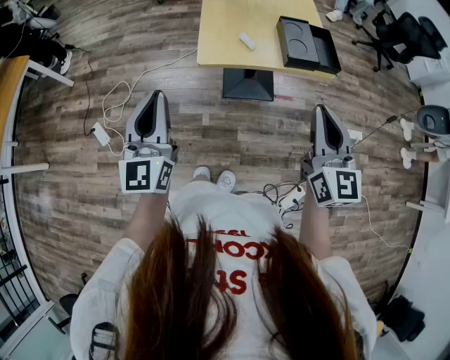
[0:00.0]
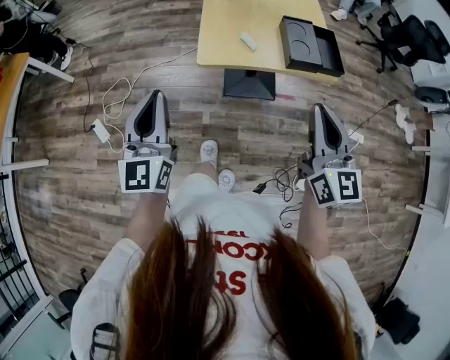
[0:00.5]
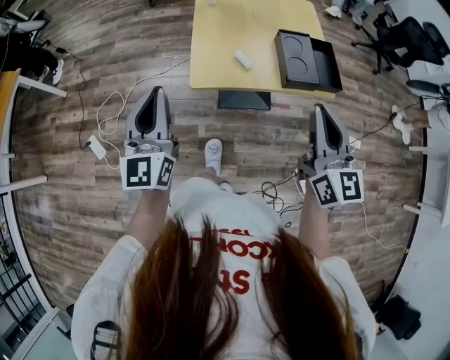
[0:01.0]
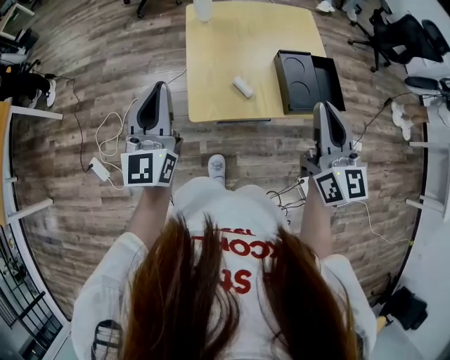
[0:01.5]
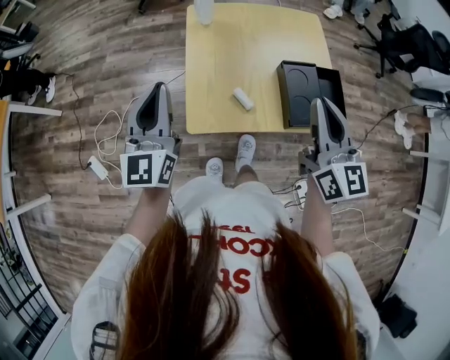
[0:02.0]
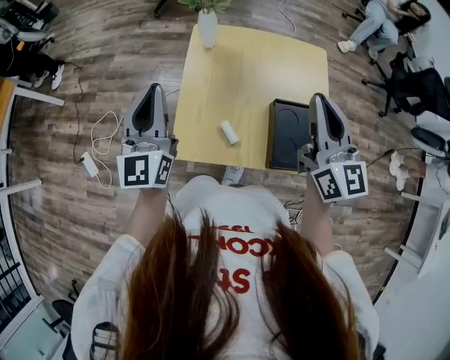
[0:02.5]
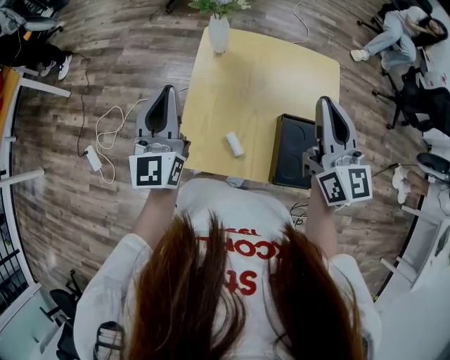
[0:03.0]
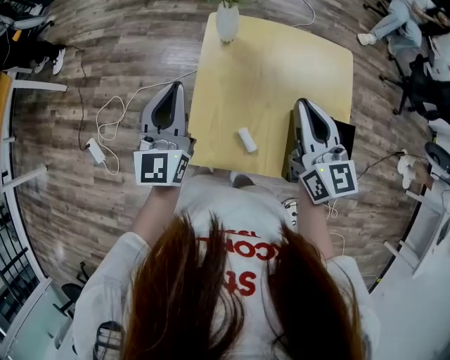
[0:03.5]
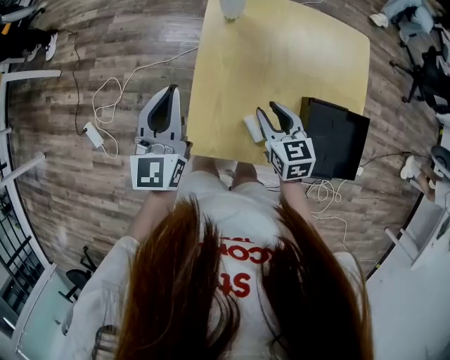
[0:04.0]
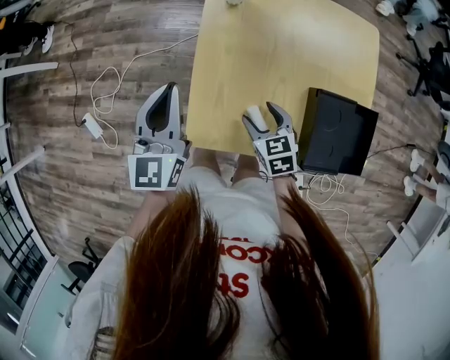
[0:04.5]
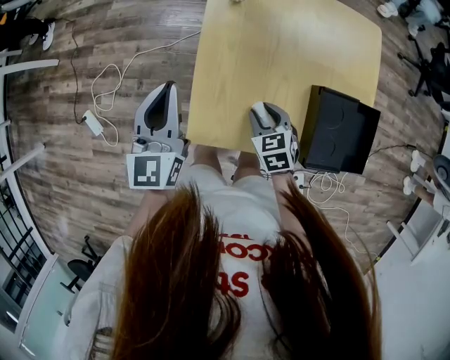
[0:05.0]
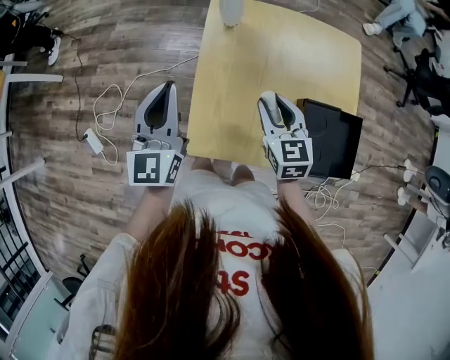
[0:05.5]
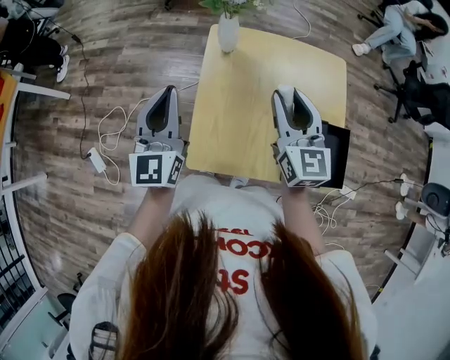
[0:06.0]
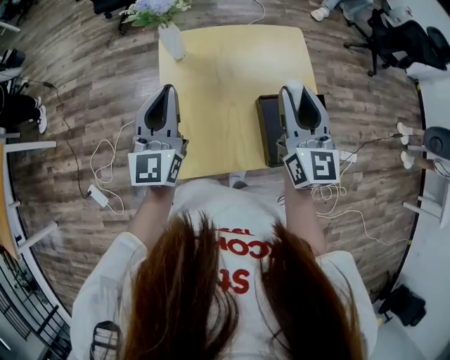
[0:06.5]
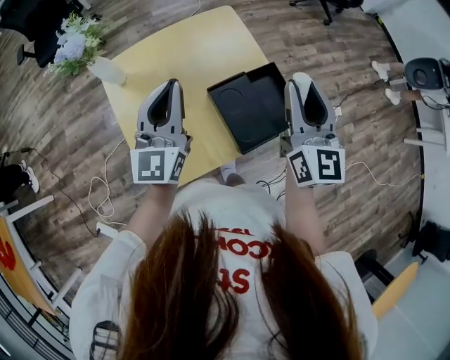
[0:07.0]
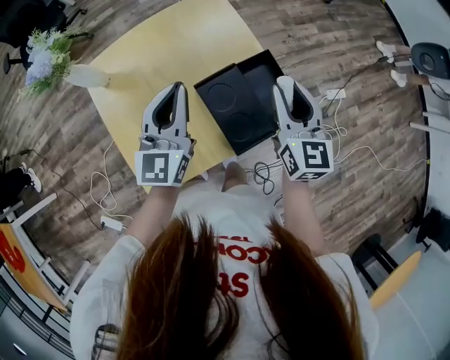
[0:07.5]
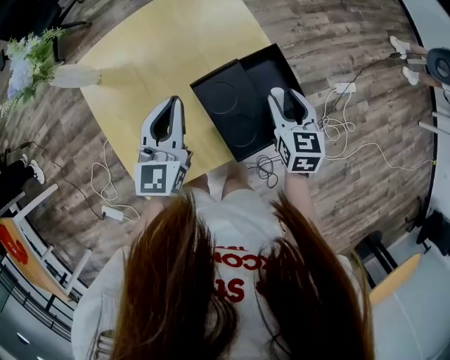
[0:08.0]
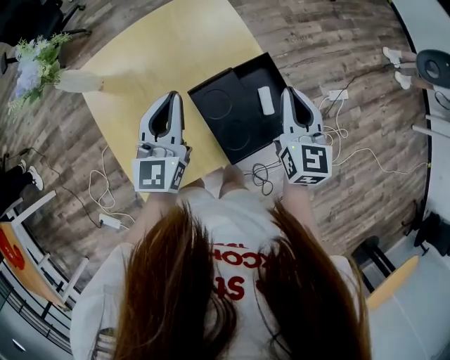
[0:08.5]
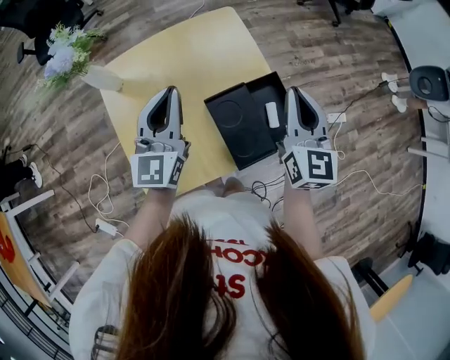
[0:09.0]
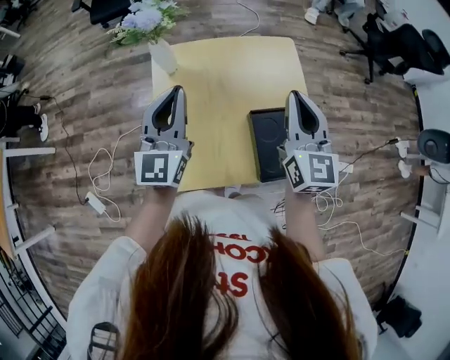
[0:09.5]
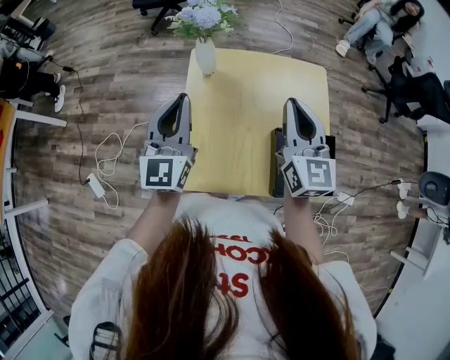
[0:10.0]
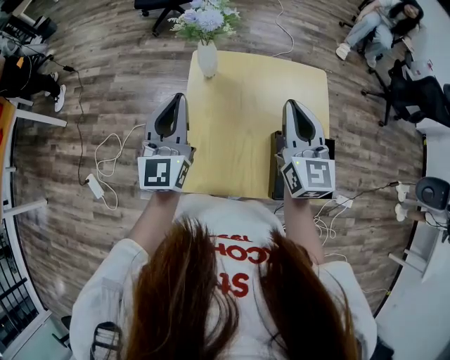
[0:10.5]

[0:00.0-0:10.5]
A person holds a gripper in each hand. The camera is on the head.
0:00.0 to 0:02.0: Both grippers move forward, some 30 cm.
0:02.0 to 0:04.0: The left gripper moves downward and forward, some 15 cm, while the right gripper goes approximately 30 cm downward and forward, points its fingers roughly 40 degrees further downward, and opens up.
0:04.0 to 0:06.5: The left gripper shifts by approximately 15 cm. Meanwhile the right gripper shifts some 25 cm upward, angles its fingers upward, by roughly 30 degrees, and opens, then closes once more.
0:06.5 to 0:08.5: Both grippers travel together to the right and downward, roughly 20 cm. The right gripper swivels roughly 30 degrees, and closes up, while the left gripper swivels some 30 degrees.
0:08.5 to 0:10.5: The left gripper moves roughly 25 cm, and rotates roughly 40 degrees; the right gripper ends up approximately 30 cm from where it was, and changes its angle by about 40 degrees.

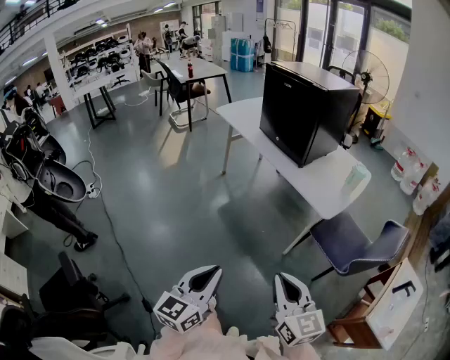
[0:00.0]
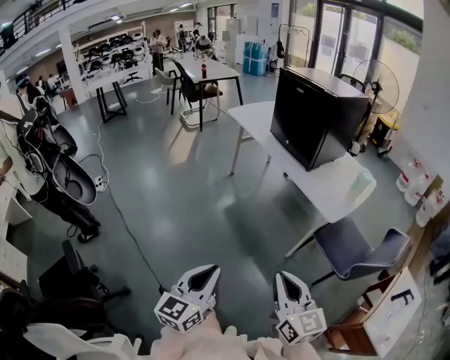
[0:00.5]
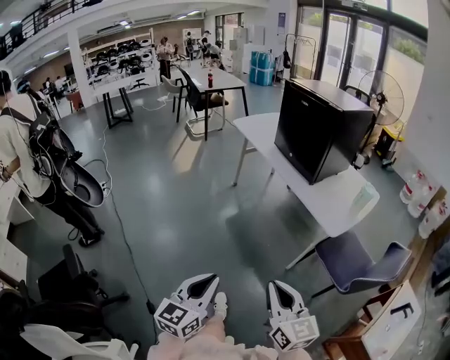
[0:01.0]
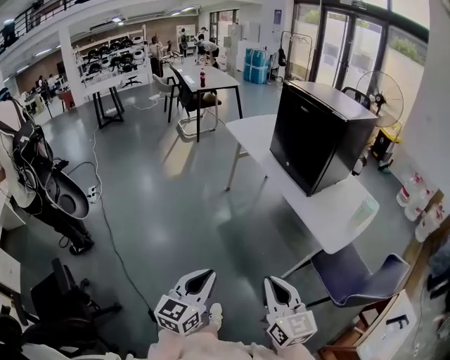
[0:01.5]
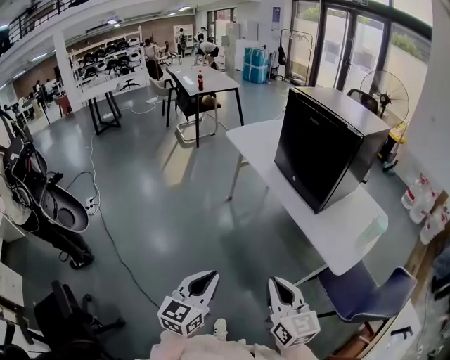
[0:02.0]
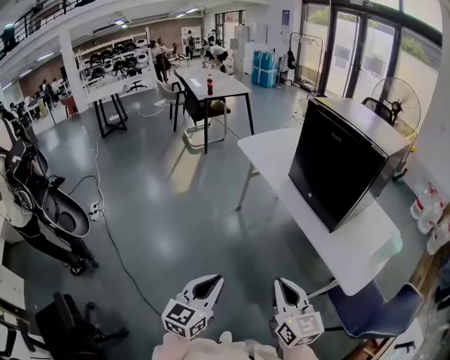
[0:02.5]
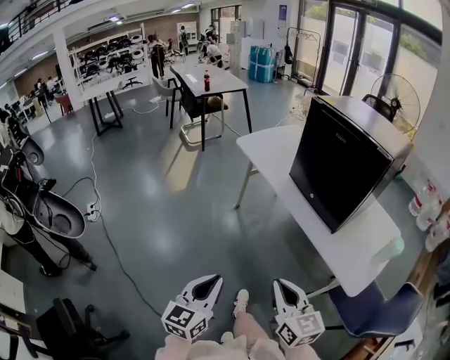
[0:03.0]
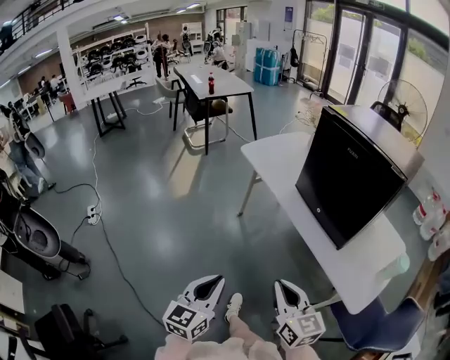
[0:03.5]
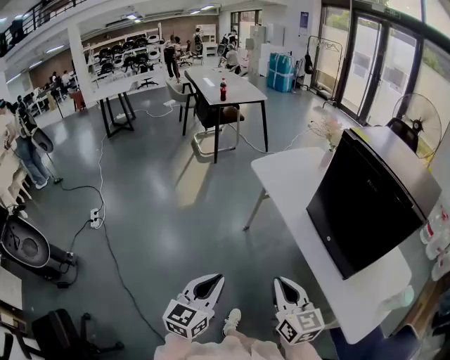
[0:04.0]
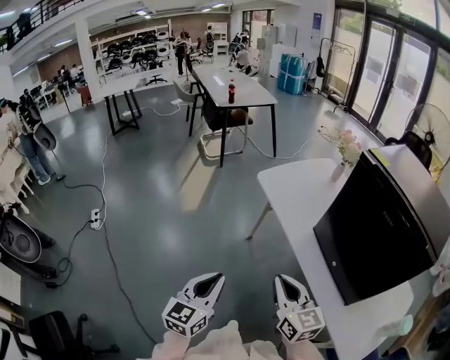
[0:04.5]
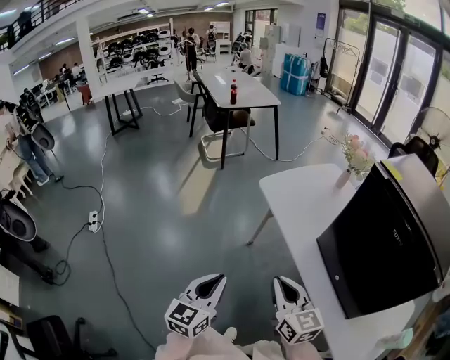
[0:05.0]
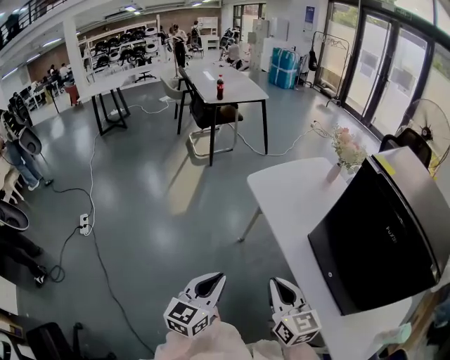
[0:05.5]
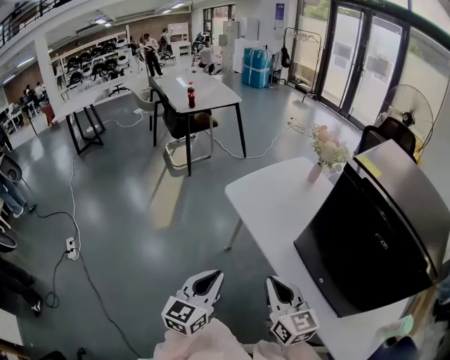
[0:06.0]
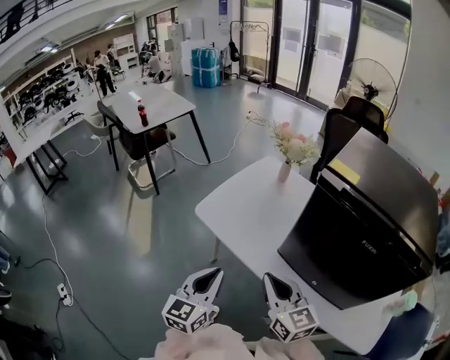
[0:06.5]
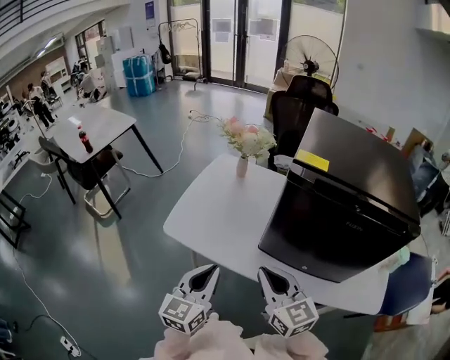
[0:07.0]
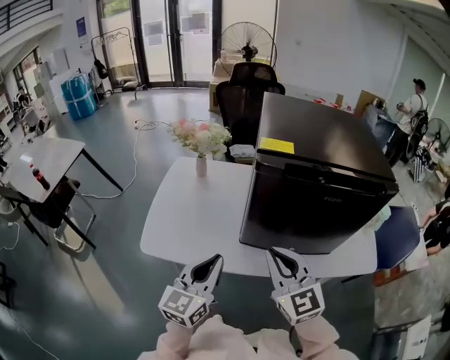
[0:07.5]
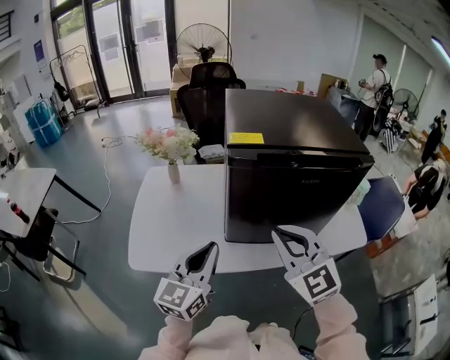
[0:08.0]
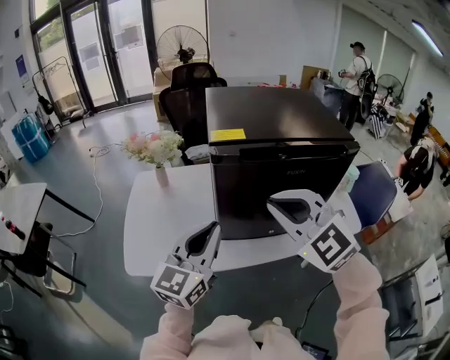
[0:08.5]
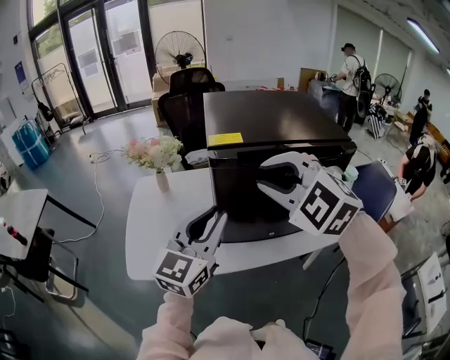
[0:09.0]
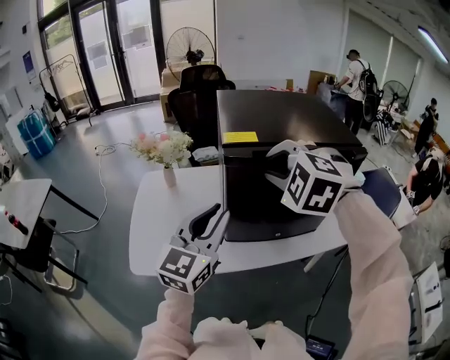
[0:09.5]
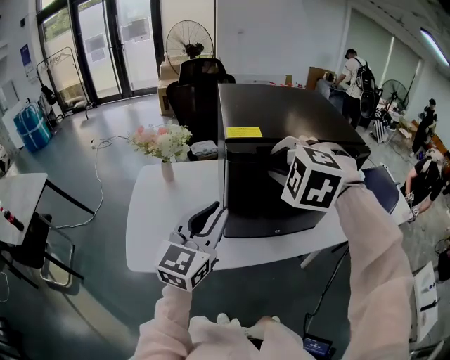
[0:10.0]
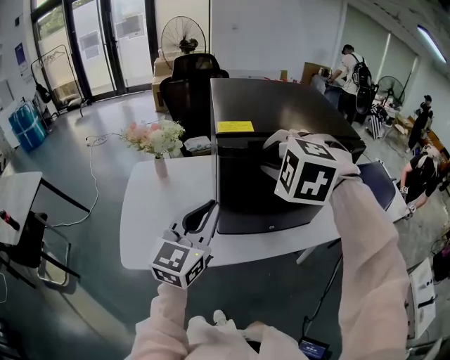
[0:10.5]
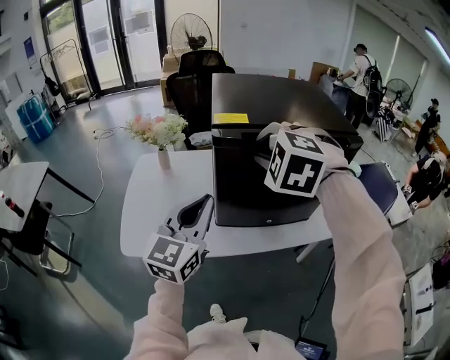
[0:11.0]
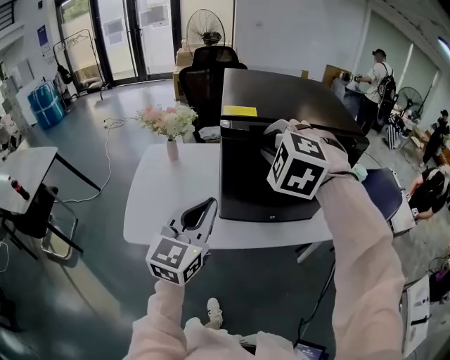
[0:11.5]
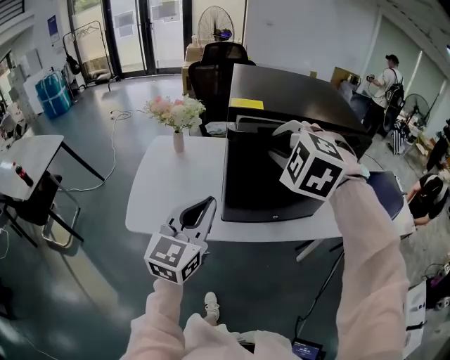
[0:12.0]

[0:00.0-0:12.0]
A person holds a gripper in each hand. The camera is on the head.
0:00.0 to 0:02.0: Both grippers move forward, about 25 cm.
0:02.0 to 0:04.0: Both grippers travel together forward, approximately 35 cm.
0:04.0 to 0:06.0: The two grippers go about 30 cm forward.
0:06.0 to 0:08.0: The right gripper moves some 20 cm, and swivels approximately 60 degrees; the left gripper changes place by about 25 cm, and rotates some 60 degrees.
0:08.0 to 0:10.0: The left gripper moves upward and forward, roughly 10 cm; the right gripper shifts approximately 15 cm forward and upward, and angles its fingers downward, by some 40 degrees.
0:10.0 to 0:12.0: The left gripper moves backward, about 10 cm.

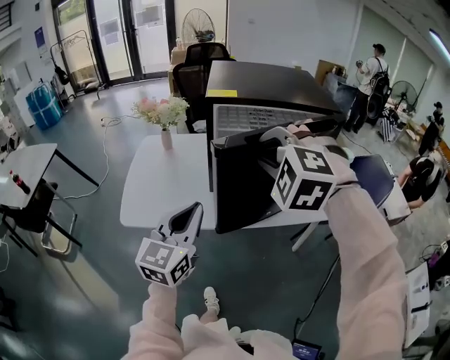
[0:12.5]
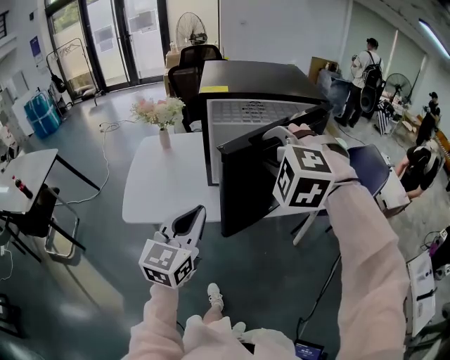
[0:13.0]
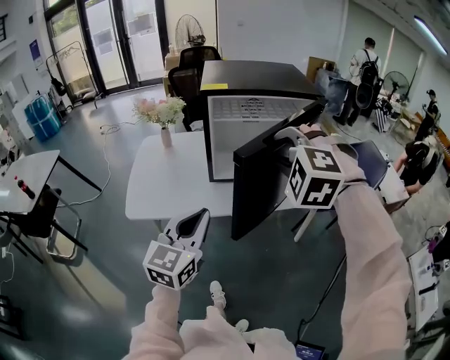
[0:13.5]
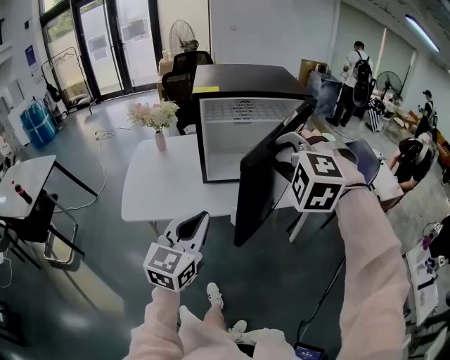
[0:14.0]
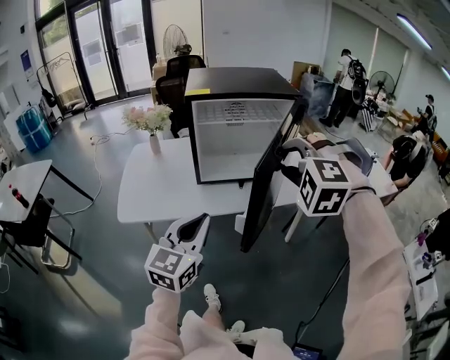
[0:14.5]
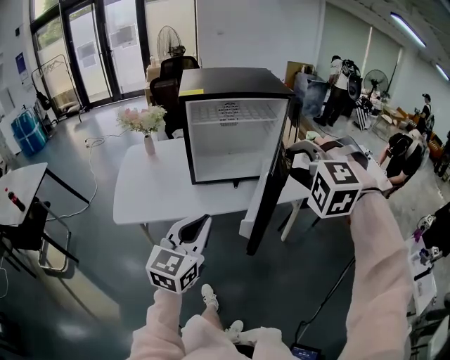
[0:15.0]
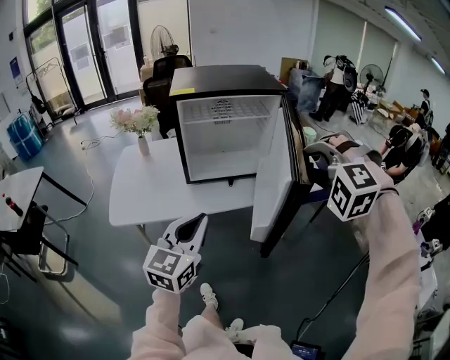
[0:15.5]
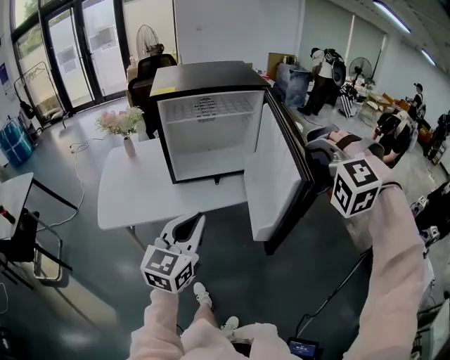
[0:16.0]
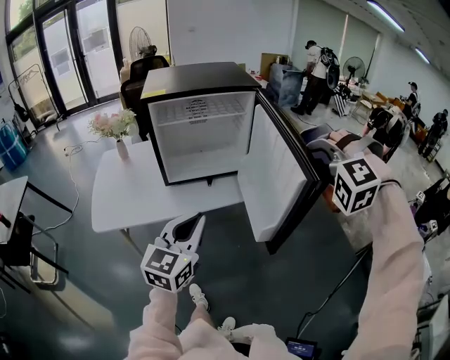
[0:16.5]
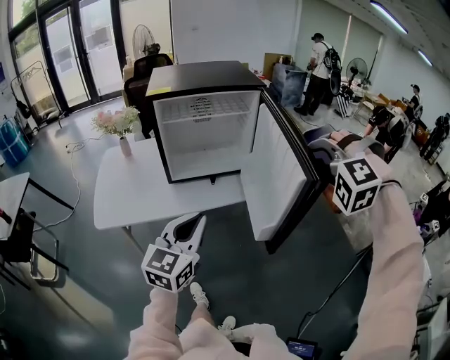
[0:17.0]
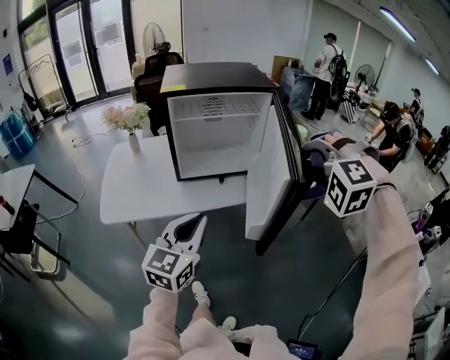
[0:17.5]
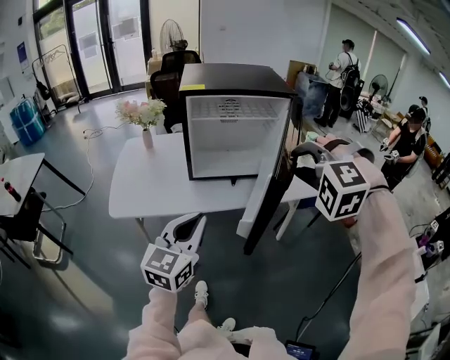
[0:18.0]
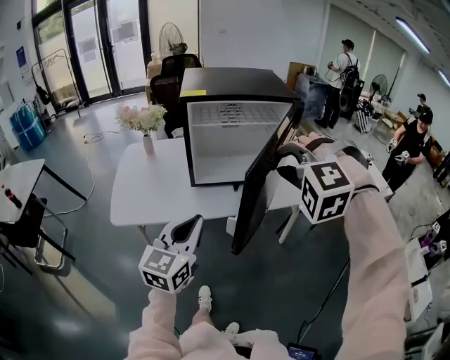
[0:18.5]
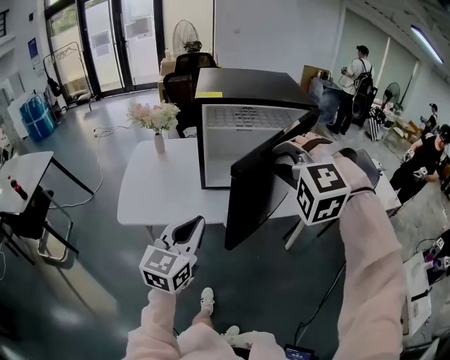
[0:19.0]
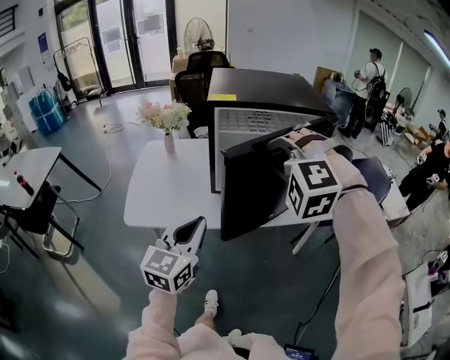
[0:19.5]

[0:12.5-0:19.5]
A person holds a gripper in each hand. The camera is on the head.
0:12.5 to 0:14.5: The right gripper is displaced to the right and backward by about 20 cm, while the left gripper is displaced backward and to the right by some 15 cm.
0:14.5 to 0:16.0: The right gripper is displaced to the right by approximately 15 cm; the left gripper heads to the right, covering approximately 5 cm.
0:16.0 to 0:17.5: The grippers stay close to where they were, moving slightly.
0:17.5 to 0:19.5: The right gripper heads to the left and forward, covering roughly 25 cm, while the left gripper moves to the left and forward, approximately 15 cm.
